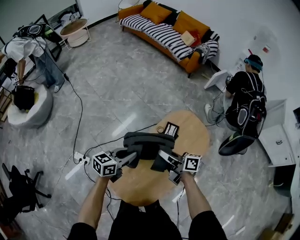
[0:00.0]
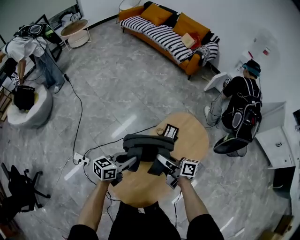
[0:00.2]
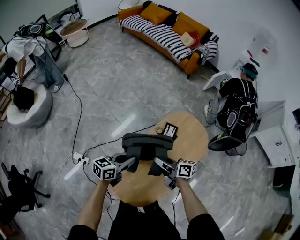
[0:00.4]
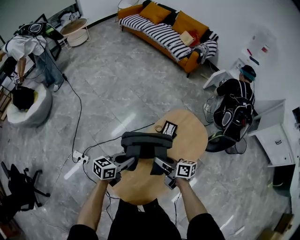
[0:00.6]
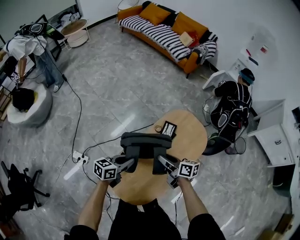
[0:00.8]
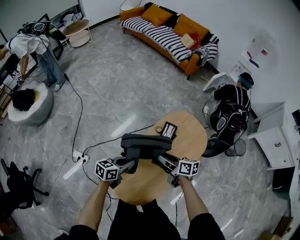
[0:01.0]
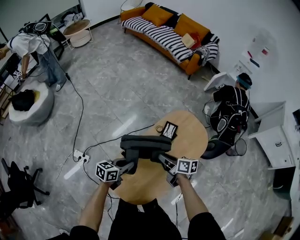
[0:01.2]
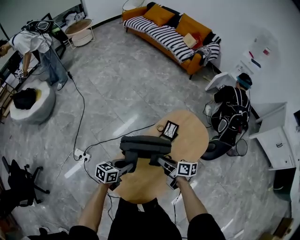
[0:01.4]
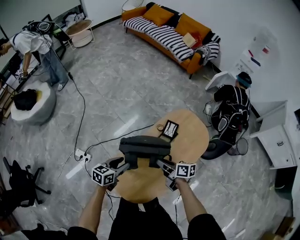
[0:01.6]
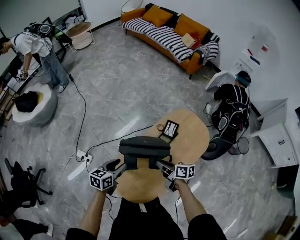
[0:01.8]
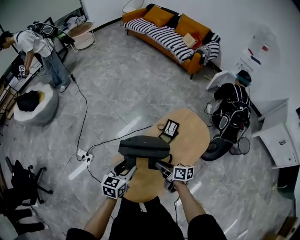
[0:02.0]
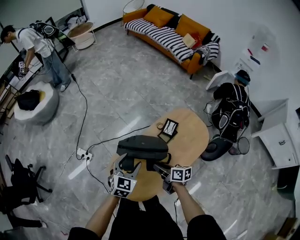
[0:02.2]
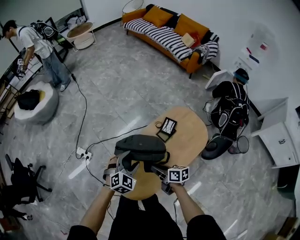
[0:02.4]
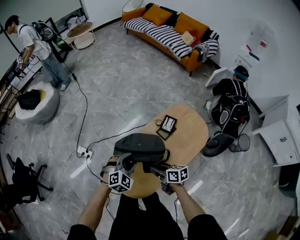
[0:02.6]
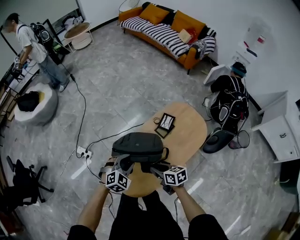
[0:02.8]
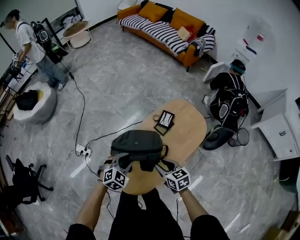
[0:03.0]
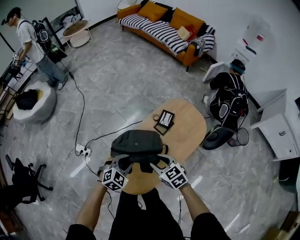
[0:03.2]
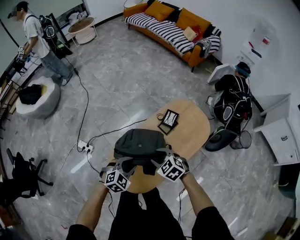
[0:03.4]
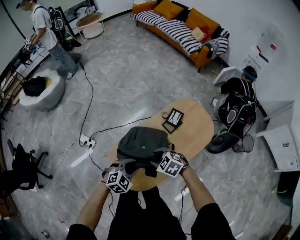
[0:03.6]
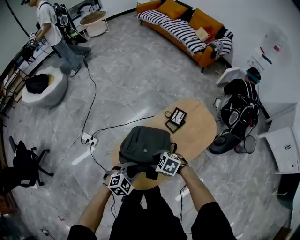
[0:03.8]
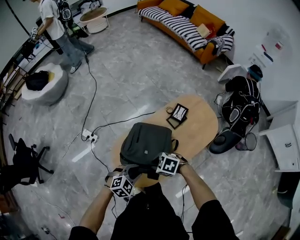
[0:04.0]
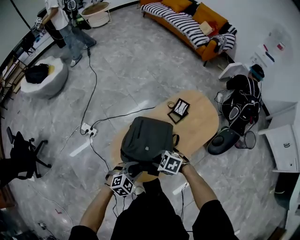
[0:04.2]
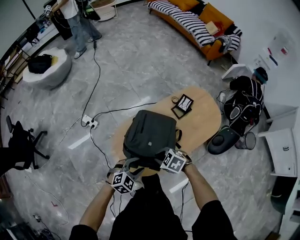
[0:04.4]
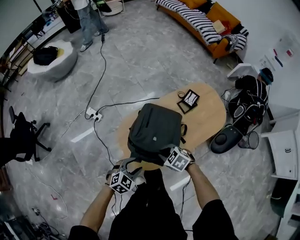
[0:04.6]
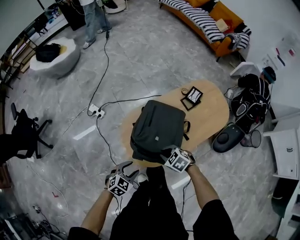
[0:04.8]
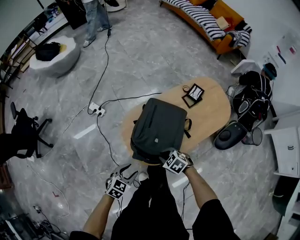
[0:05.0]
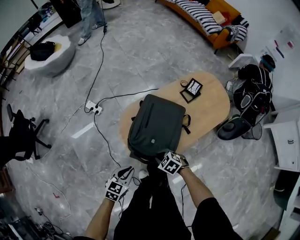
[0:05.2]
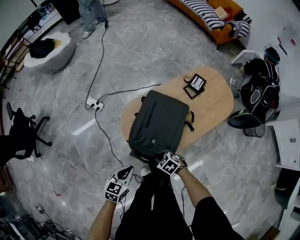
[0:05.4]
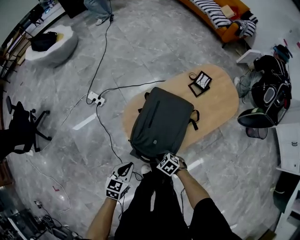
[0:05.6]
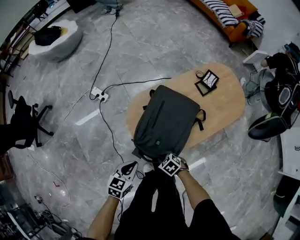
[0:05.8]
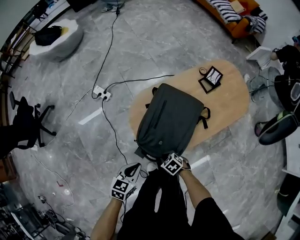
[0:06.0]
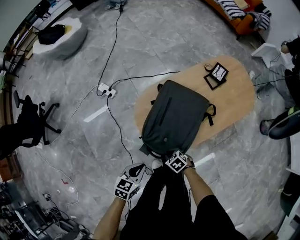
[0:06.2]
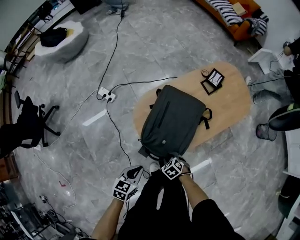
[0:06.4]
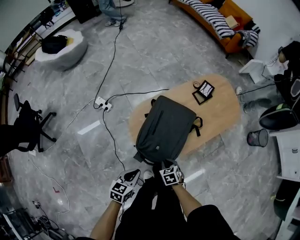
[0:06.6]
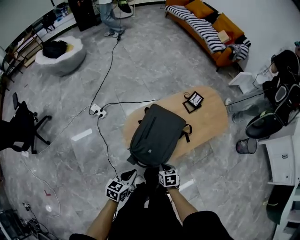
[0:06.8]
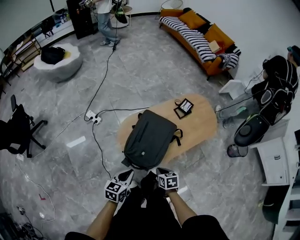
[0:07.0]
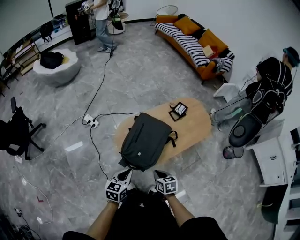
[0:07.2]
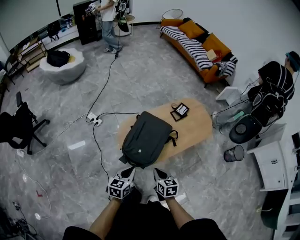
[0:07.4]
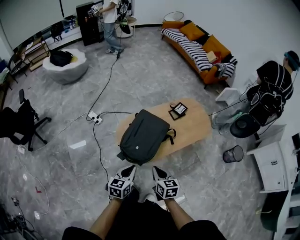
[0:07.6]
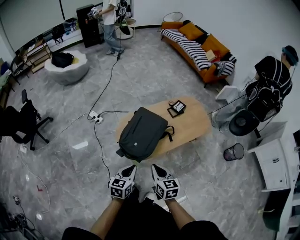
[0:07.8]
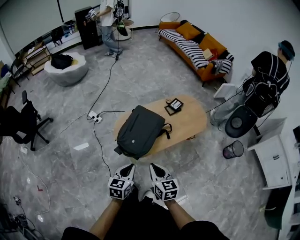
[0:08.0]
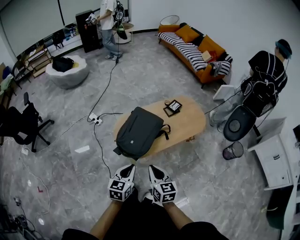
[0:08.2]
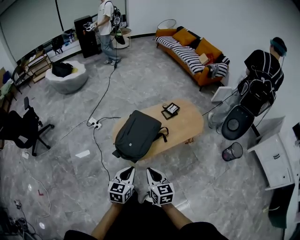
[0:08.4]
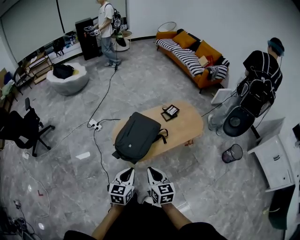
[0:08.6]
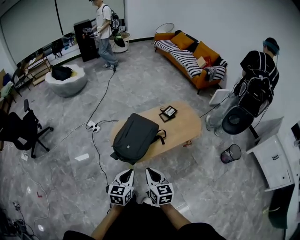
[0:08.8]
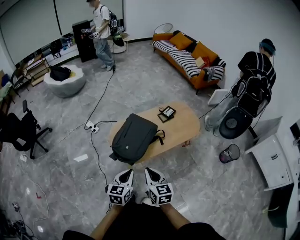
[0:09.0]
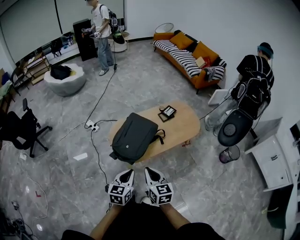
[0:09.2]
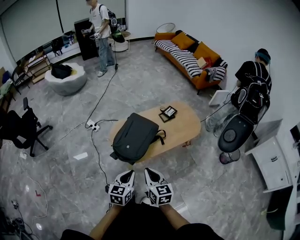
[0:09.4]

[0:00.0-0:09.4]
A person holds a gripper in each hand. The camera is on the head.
0:00.0 to 0:01.6: Both grippers move backward and downward, roughly 10 cm. The right gripper opens, then closes again. Meanwhile the left gripper opens up.
0:01.6 to 0:03.2: The left gripper goes approximately 10 cm backward and to the right, and twists approximately 50 degrees clockwise, seen from behind; the right gripper travels backward by approximately 10 cm, twists some 50 degrees counterclockwise, seen from behind, and opens its fingers.
0:03.2 to 0:04.8: The left gripper ends up roughly 30 cm from where it was, and rotates approximately 30 degrees. Meanwhile the right gripper ends up about 20 cm from where it was, changes its angle by roughly 40 degrees, and closes up.
0:04.8 to 0:06.2: The left gripper moves about 10 cm, swivels approximately 30 degrees, and closes up, while the right gripper heads downward, covering about 20 cm.
0:06.2 to 0:07.8: The left gripper moves upward, some 20 cm, and turns by roughly 20 degrees; the right gripper travels upward by about 35 cm, and angles its fingers upward, by approximately 40 degrees.
0:07.8 to 0:09.4: The left gripper is displaced backward and to the right by roughly 10 cm. The right gripper heads backward and upward, covering roughly 10 cm.

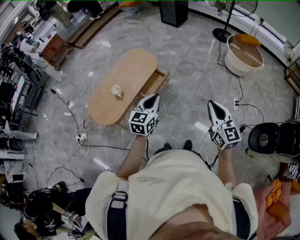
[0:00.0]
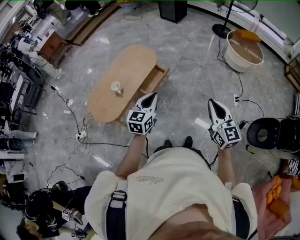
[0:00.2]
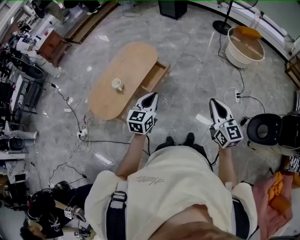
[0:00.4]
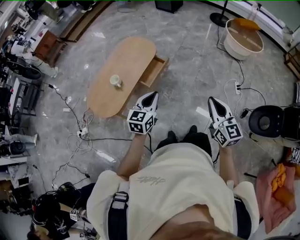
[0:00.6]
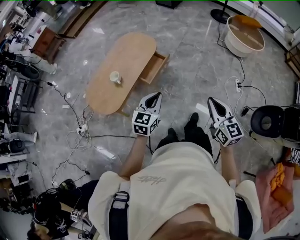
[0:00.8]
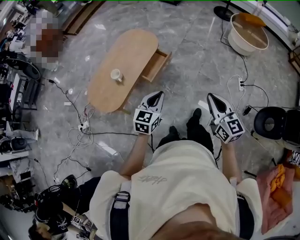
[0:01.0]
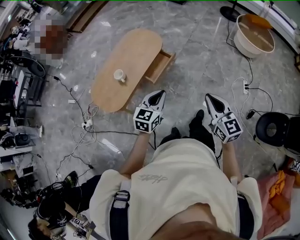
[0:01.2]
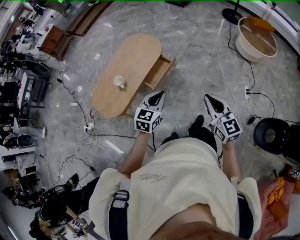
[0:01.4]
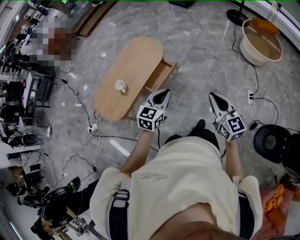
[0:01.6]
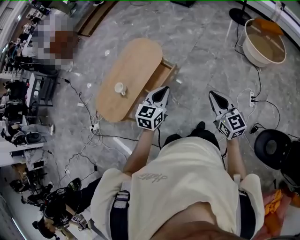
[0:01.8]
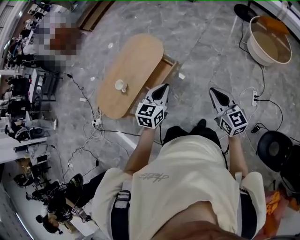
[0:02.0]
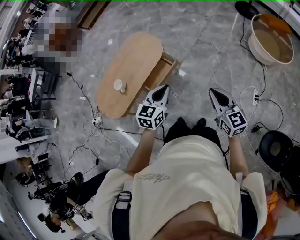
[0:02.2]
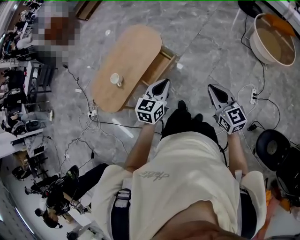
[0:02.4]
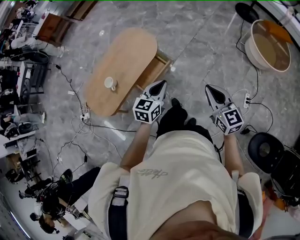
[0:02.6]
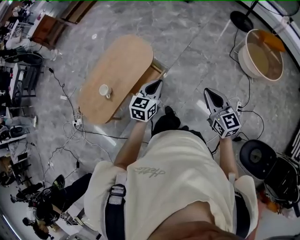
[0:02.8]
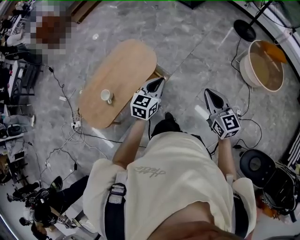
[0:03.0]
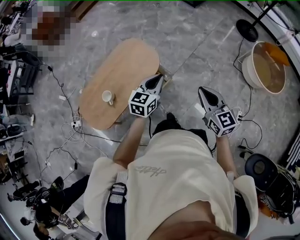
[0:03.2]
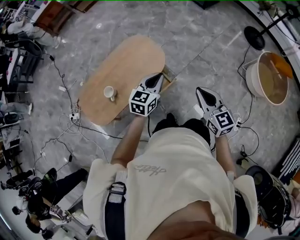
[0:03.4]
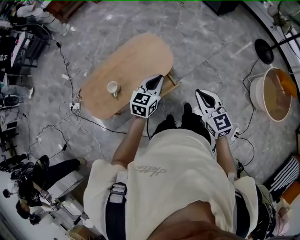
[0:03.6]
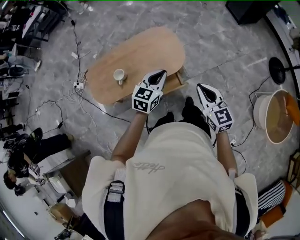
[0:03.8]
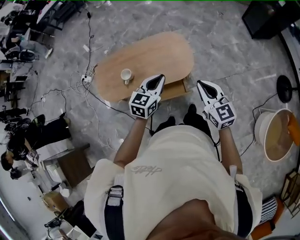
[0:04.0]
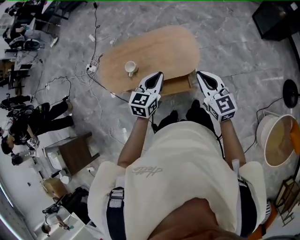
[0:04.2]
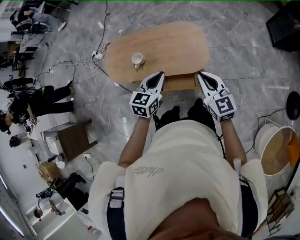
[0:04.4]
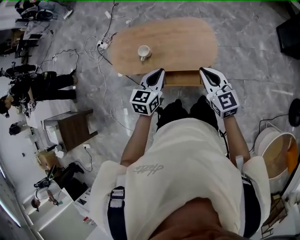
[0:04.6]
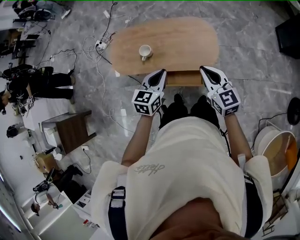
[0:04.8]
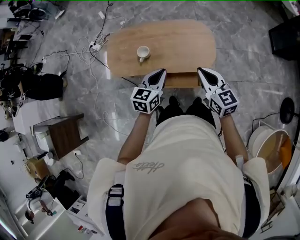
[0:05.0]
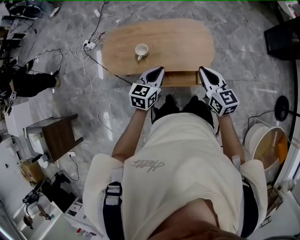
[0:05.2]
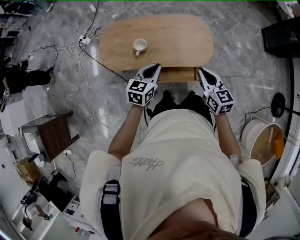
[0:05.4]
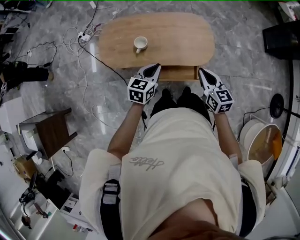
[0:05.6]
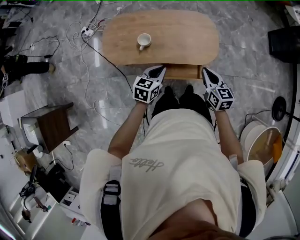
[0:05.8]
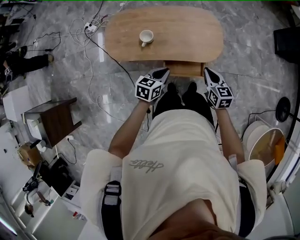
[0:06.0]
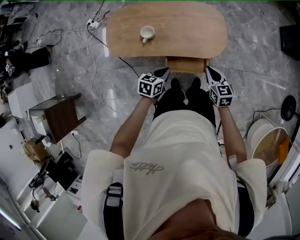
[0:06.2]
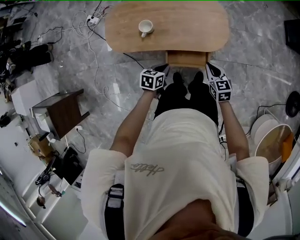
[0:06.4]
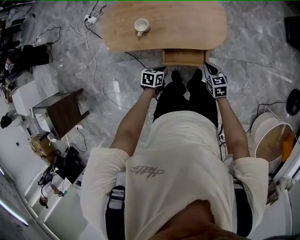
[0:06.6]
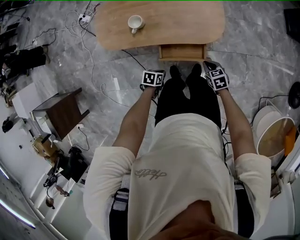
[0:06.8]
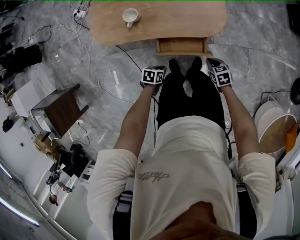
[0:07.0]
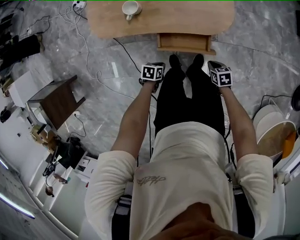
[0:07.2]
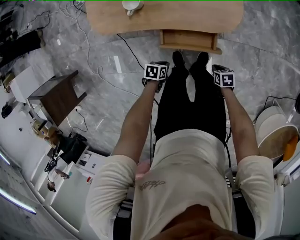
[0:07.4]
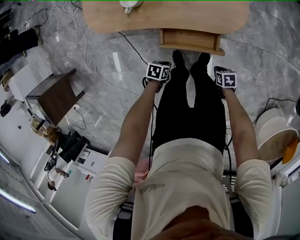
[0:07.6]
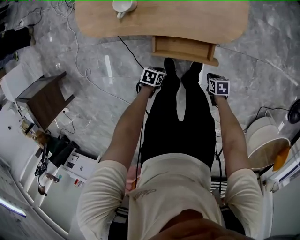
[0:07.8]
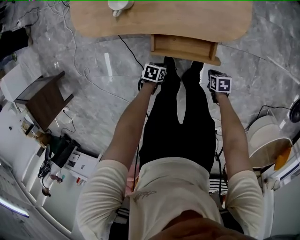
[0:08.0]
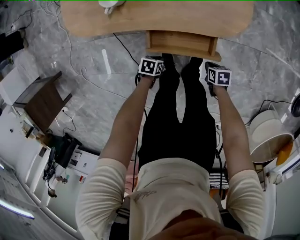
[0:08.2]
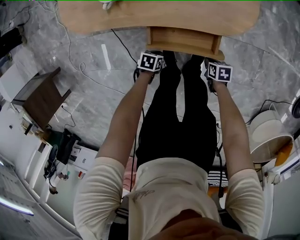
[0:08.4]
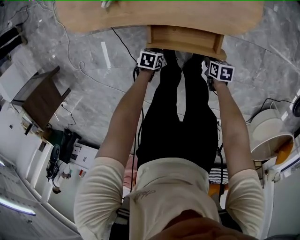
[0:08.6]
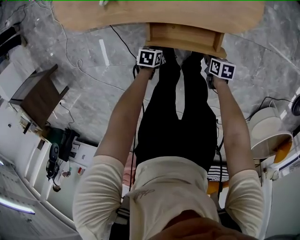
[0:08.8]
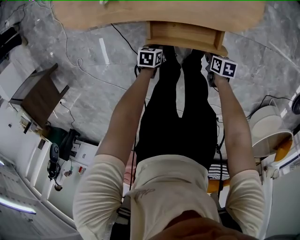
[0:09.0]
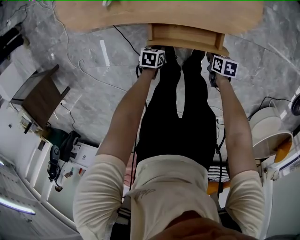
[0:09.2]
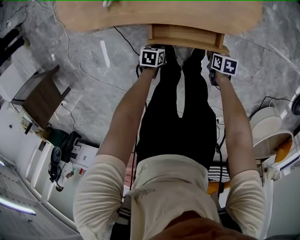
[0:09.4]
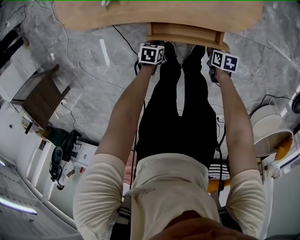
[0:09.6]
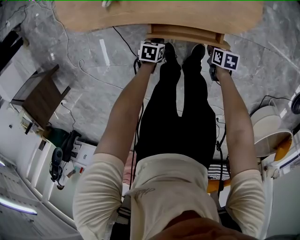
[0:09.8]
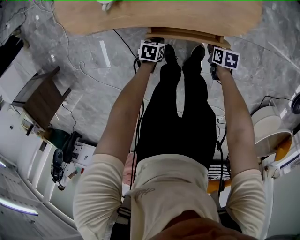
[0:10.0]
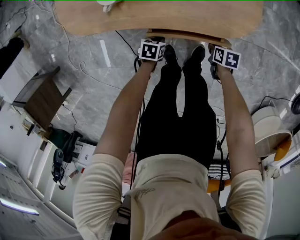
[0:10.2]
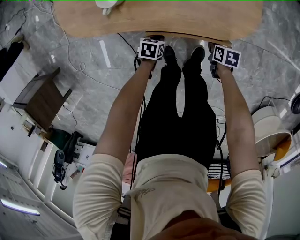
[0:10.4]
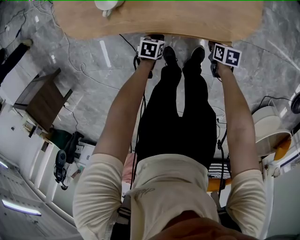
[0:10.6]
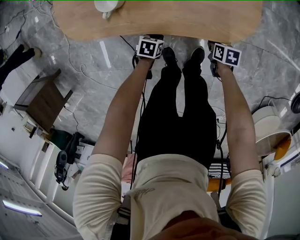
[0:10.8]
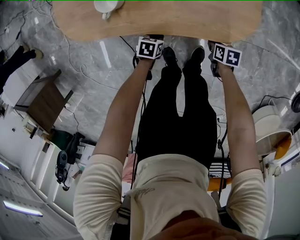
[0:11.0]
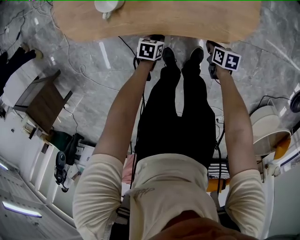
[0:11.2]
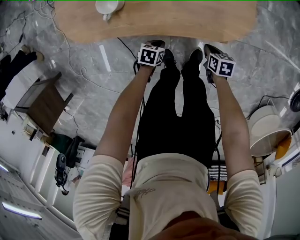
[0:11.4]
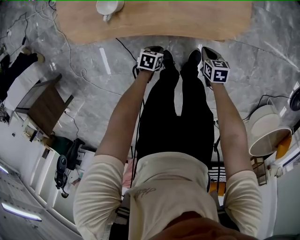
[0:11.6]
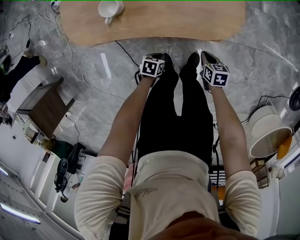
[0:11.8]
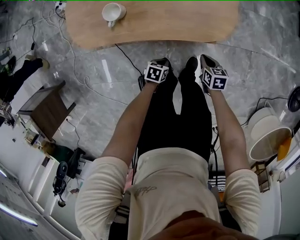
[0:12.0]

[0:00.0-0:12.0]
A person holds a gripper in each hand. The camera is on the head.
0:00.0 to 0:01.6: The right gripper goes approximately 20 cm forward and downward, while the left gripper moves forward, to the right and downward, roughly 20 cm.
0:01.6 to 0:03.0: The grippers both shift forward by roughly 35 cm.
0:03.0 to 0:04.4: The left gripper moves approximately 25 cm, and turns by some 50 degrees. The right gripper changes place by roughly 35 cm, and swivels roughly 50 degrees.
0:04.4 to 0:06.0: The right gripper is displaced downward and to the left by some 20 cm, and changes its angle by roughly 20 degrees, while the left gripper shifts approximately 25 cm to the left and downward, and swivels approximately 20 degrees.
0:06.0 to 0:07.6: The grippers both shift downward by some 40 cm. The left gripper changes its angle by about 40 degrees. The right gripper angles its fingers downward, by about 30 degrees.
0:07.6 to 0:09.0: The grippers both shift downward by some 15 cm.
0:09.0 to 0:10.4: The left gripper shifts by approximately 10 cm. The right gripper ends up about 10 cm from where it was.
0:10.4 to 0:12.0: The left gripper moves some 15 cm; the right gripper moves upward, some 15 cm, and rotates approximately 20 degrees.

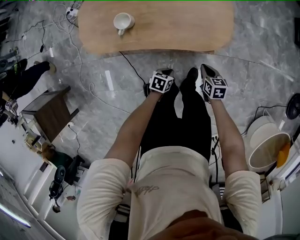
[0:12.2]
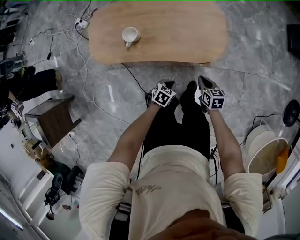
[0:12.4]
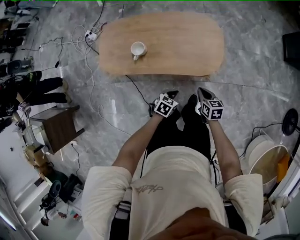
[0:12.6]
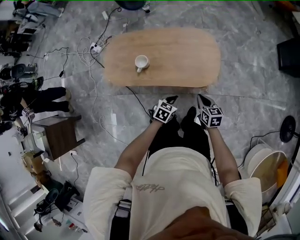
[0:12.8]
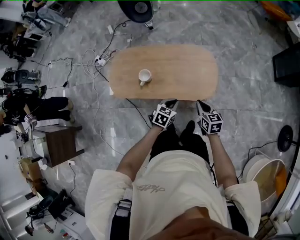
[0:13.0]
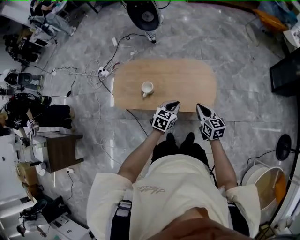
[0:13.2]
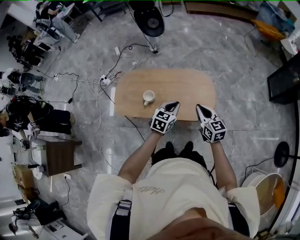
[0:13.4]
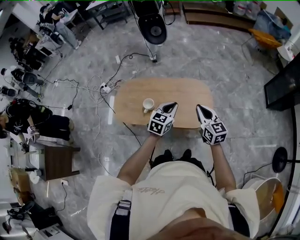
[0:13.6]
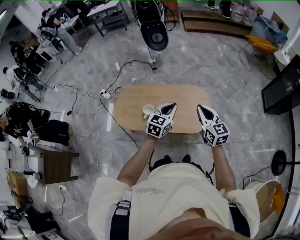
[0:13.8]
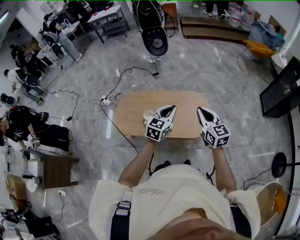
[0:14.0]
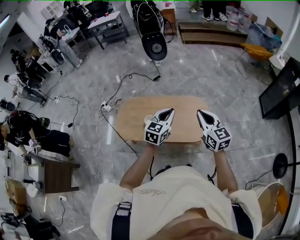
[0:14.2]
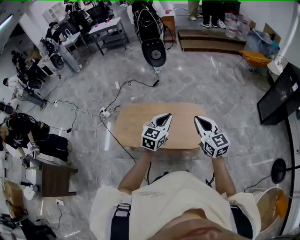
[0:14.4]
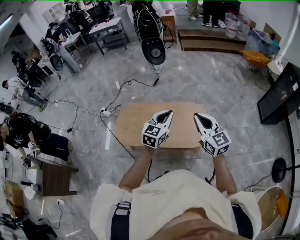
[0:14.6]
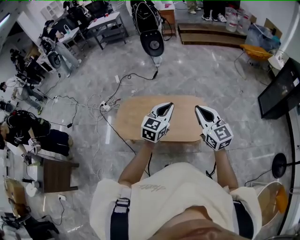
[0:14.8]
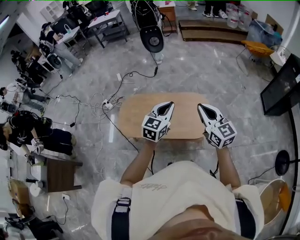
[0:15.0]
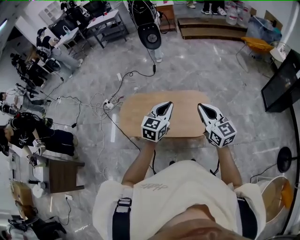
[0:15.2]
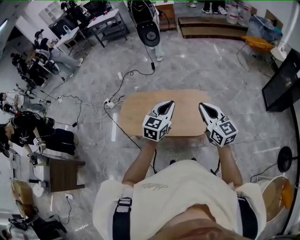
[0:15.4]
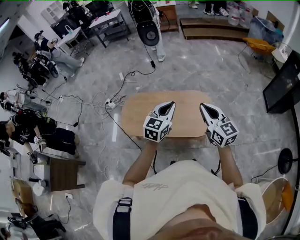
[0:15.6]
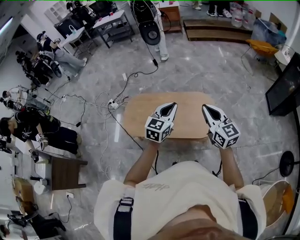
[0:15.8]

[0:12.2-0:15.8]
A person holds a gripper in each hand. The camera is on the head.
0:12.2 to 0:14.0: The grippers both shift upward by approximately 60 cm. The right gripper tips its fingers upward by approximately 40 degrees. The left gripper tips its fingers upward by approximately 40 degrees.
0:14.0 to 0:15.8: Both grippers travel together upward, roughly 5 cm.
